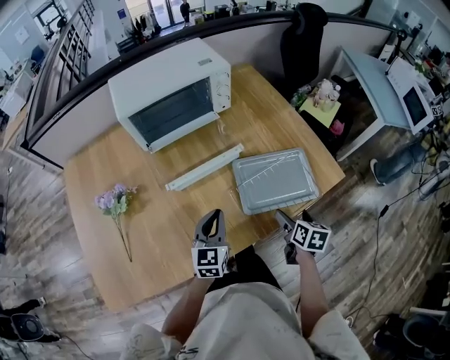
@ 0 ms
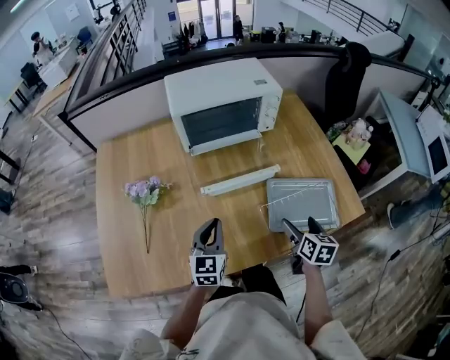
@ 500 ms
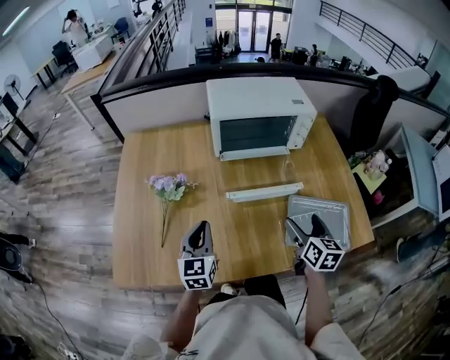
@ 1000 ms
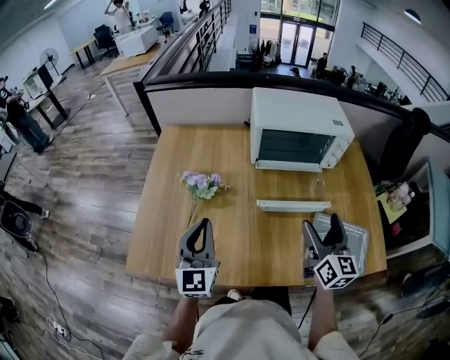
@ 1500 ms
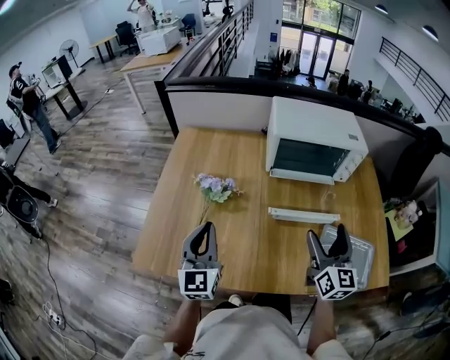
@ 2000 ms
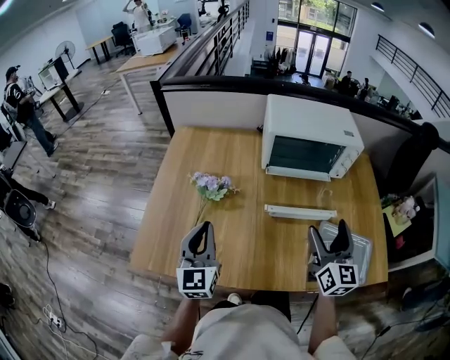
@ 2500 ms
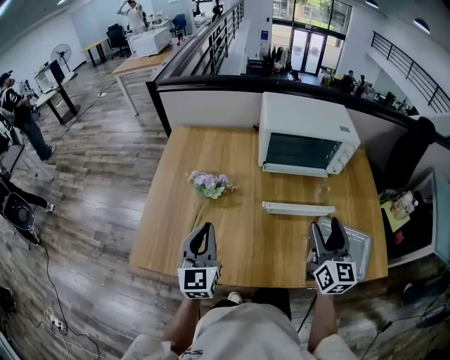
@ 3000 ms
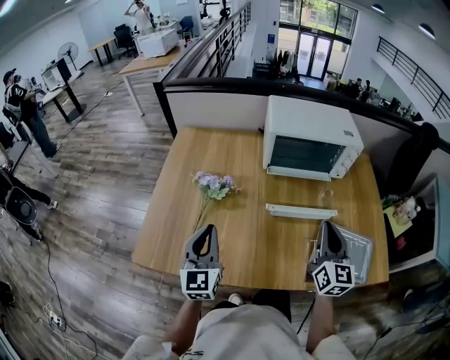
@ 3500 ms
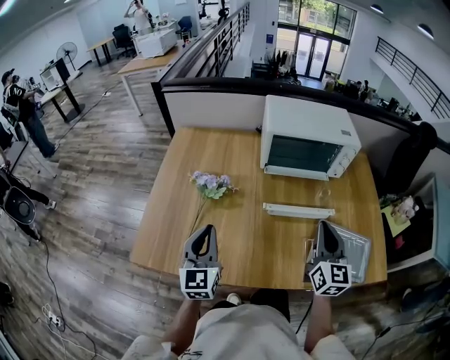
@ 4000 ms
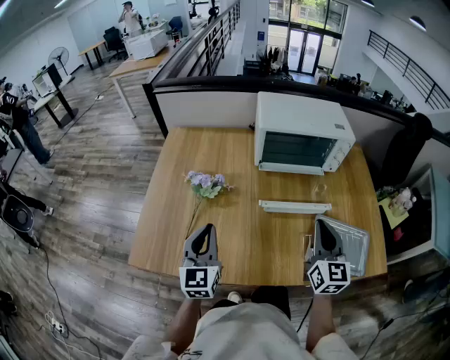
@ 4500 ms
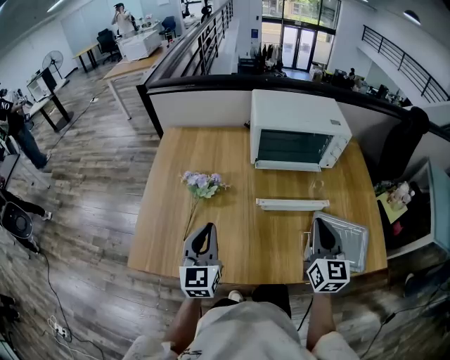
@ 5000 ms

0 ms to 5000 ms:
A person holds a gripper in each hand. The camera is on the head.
0 ms to 2500 ms: The left gripper ends up some 35 cm from where it was, and rotates some 40 degrees. Meanwhile the right gripper changes place by about 35 cm, and angles its fingers upward, by some 40 degrees.
2500 ms to 5000 ms: The right gripper closes its fingers.

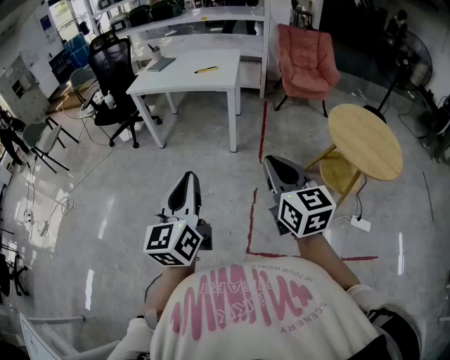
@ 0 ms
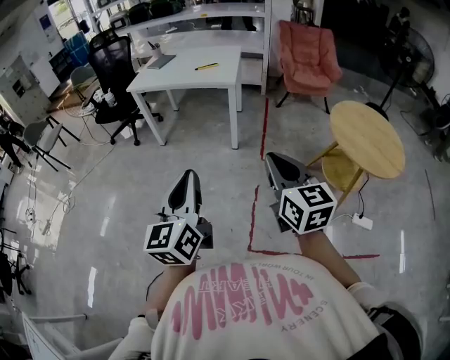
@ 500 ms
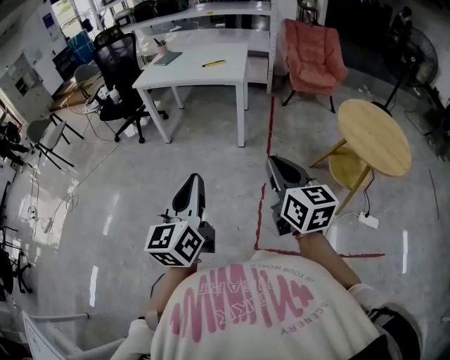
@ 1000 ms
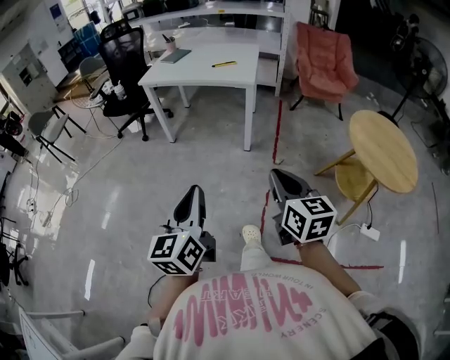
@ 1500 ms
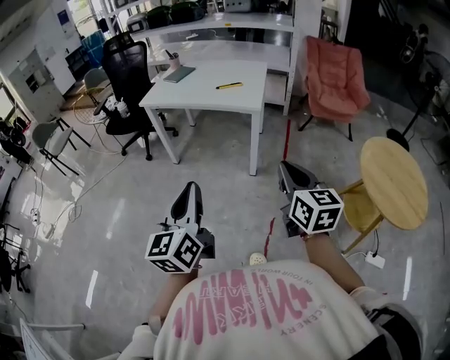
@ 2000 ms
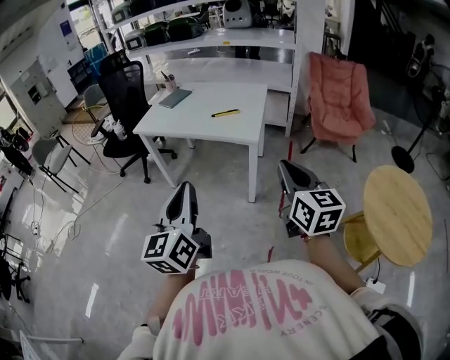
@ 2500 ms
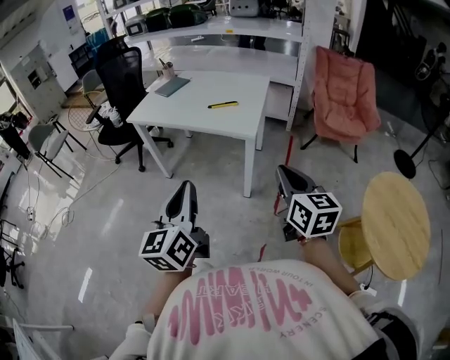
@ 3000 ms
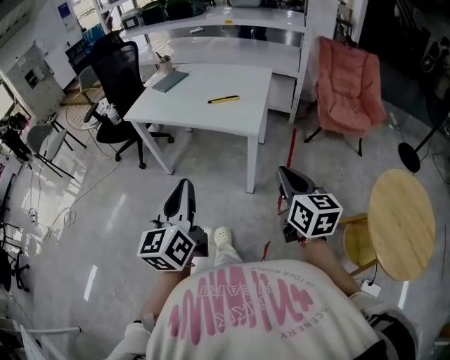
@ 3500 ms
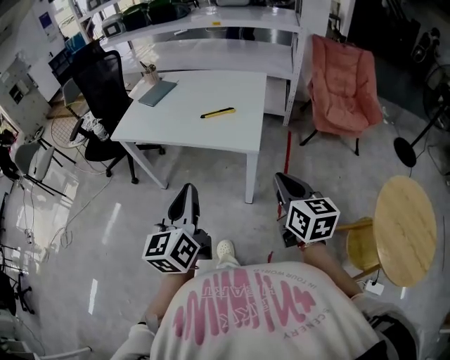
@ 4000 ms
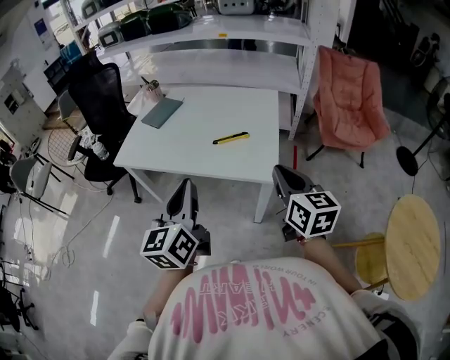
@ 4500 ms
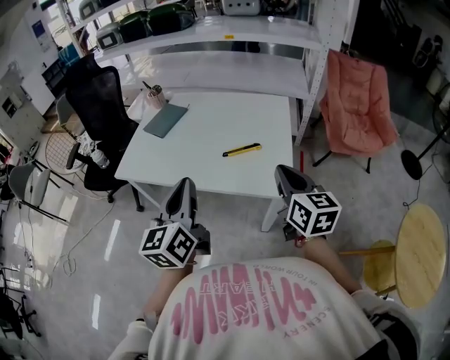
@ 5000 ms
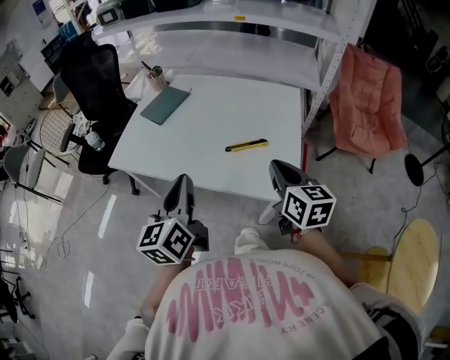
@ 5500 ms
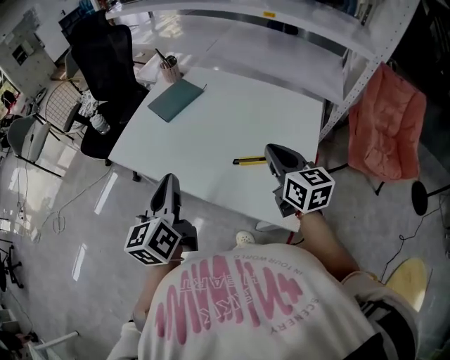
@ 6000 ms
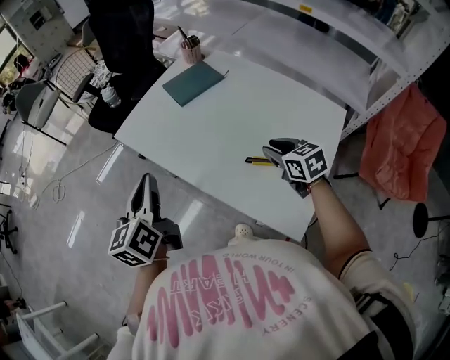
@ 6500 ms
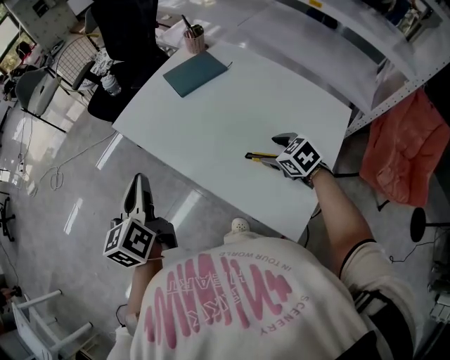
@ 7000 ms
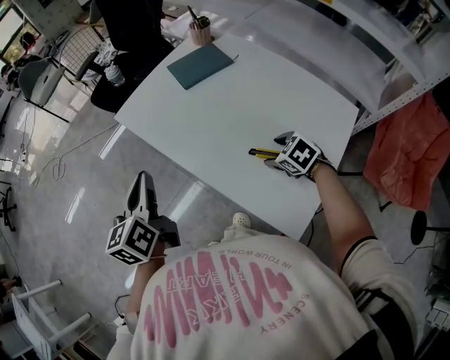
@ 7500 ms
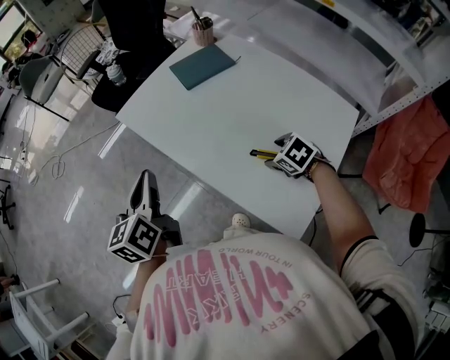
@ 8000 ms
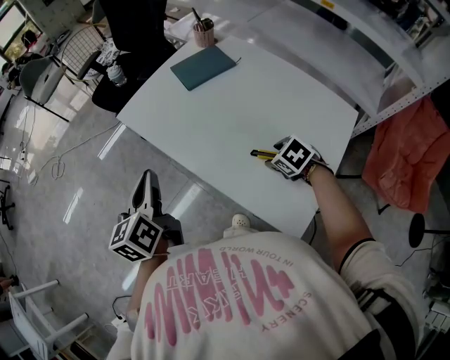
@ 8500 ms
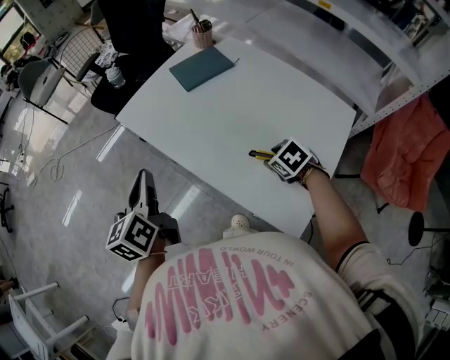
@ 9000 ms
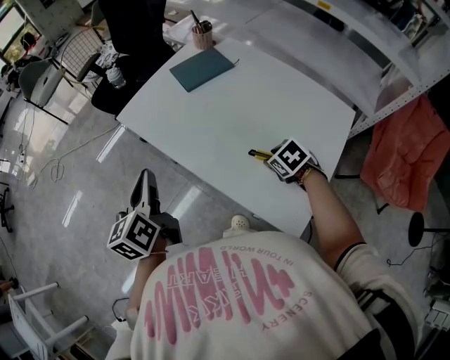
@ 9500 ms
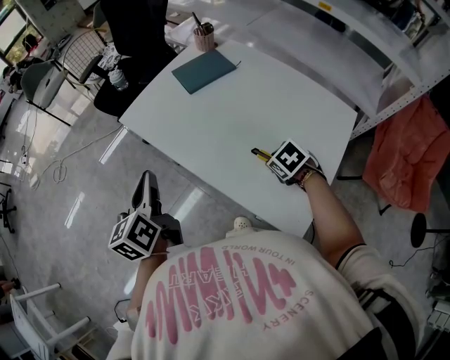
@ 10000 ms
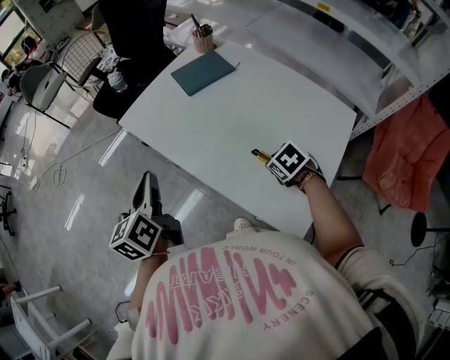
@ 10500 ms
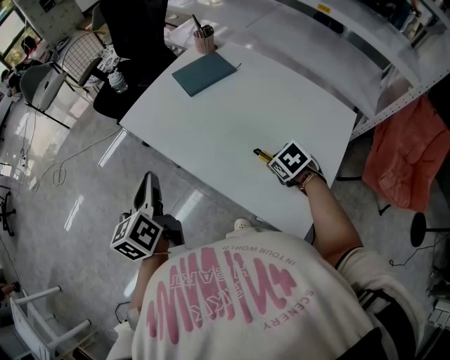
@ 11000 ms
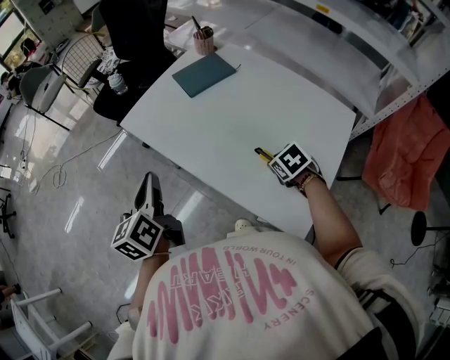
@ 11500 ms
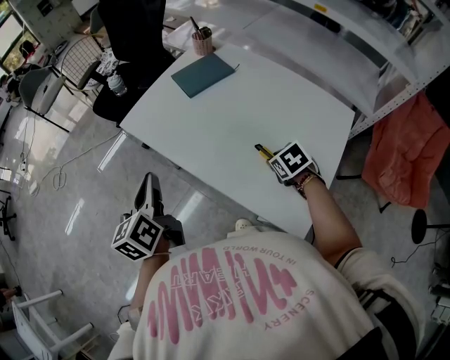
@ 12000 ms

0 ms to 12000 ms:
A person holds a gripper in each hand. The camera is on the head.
0 ms to 2000 ms: Both grippers move forward, about 25 cm.
2000 ms to 4000 ms: The pair of grippers is taken forward, approximately 40 cm.
4000 ms to 6000 ms: The two grippers travel together, forward, approximately 50 cm.
6000 ms to 8000 ms: The right gripper travels downward by about 20 cm, angles its fingers downward, by approximately 50 degrees, and opens, while the left gripper changes place by approximately 10 cm, and rotates about 20 degrees.
8000 ms to 10000 ms: The right gripper closes its fingers.
10000 ms to 12000 ms: The grippers make only small movements.

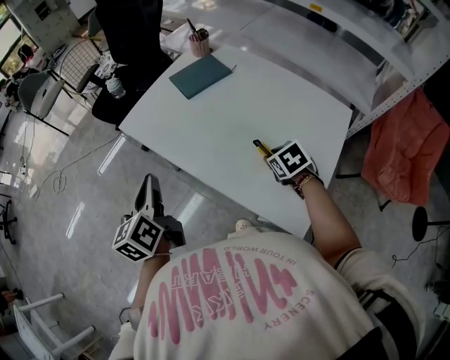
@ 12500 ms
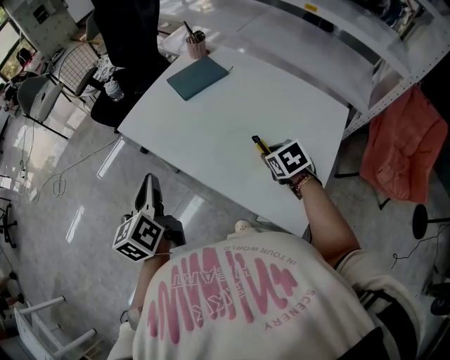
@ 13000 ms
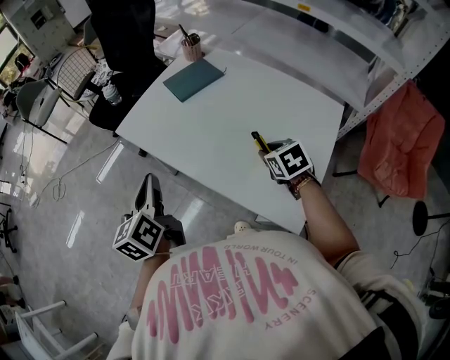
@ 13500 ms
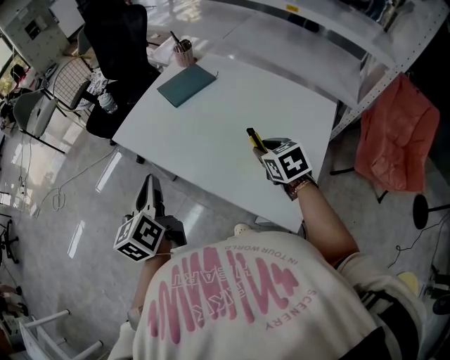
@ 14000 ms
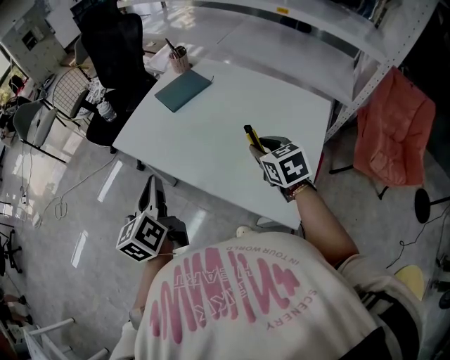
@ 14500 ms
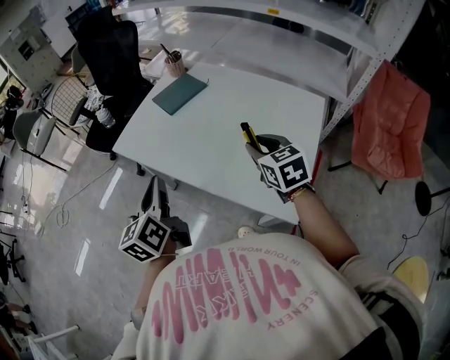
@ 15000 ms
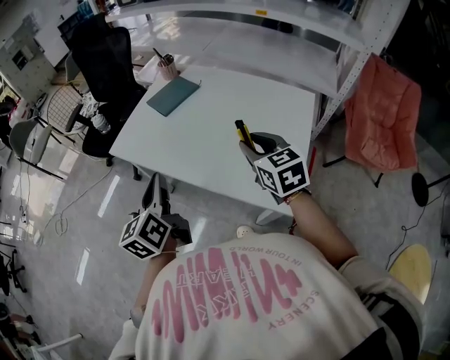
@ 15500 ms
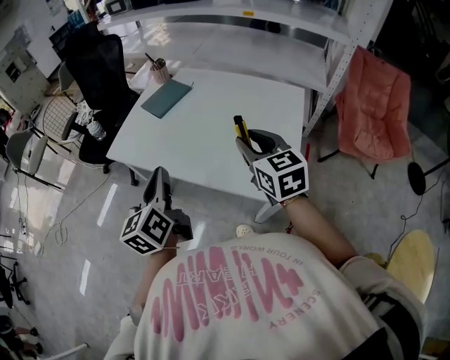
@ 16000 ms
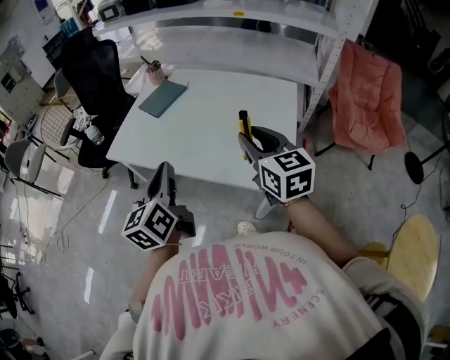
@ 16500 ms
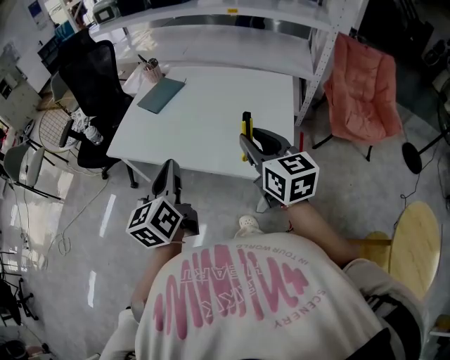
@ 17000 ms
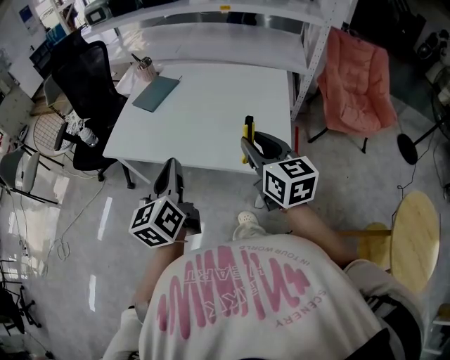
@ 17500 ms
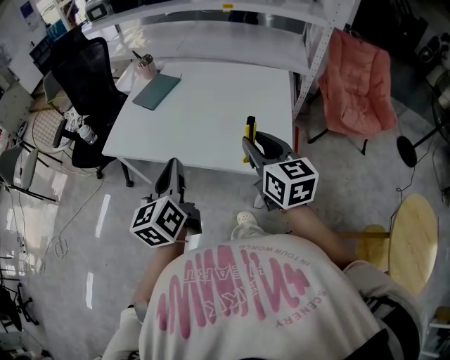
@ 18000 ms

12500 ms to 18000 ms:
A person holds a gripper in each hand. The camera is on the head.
12500 ms to 14500 ms: The right gripper goes roughly 10 cm upward, and rotates roughly 30 degrees. The left gripper ends up roughly 5 cm from where it was.
14500 ms to 16000 ms: The left gripper shifts roughly 5 cm backward. The right gripper shifts approximately 15 cm backward and upward, and swivels approximately 20 degrees.
16000 ms to 18000 ms: The right gripper heads backward, covering roughly 10 cm, while the left gripper heads backward, covering roughly 5 cm.

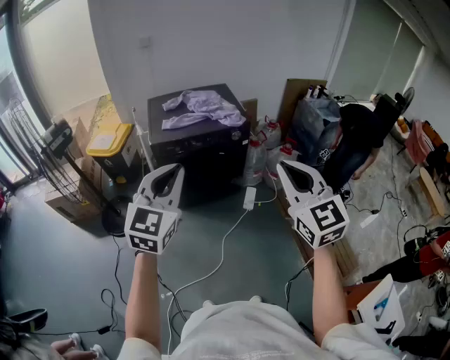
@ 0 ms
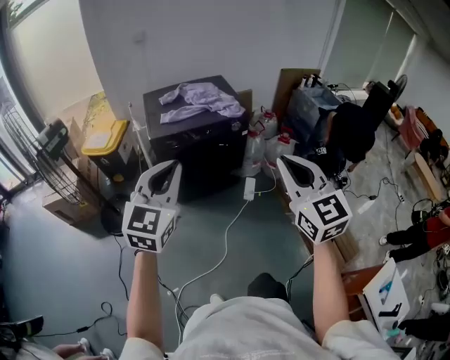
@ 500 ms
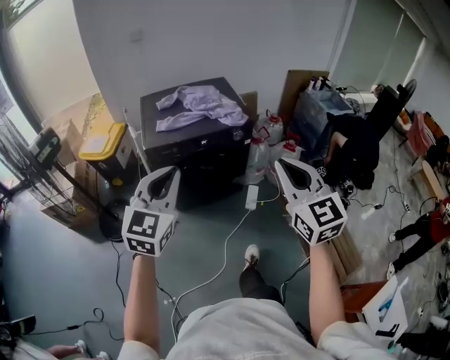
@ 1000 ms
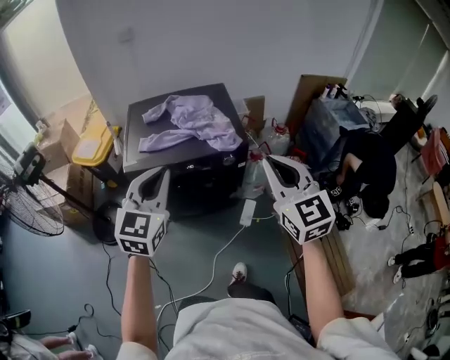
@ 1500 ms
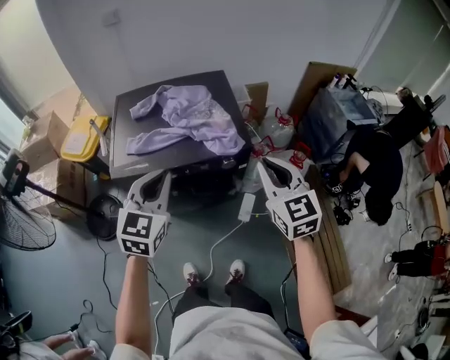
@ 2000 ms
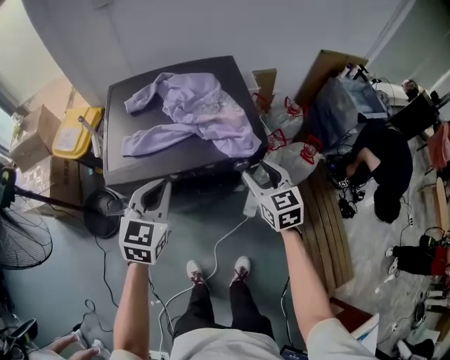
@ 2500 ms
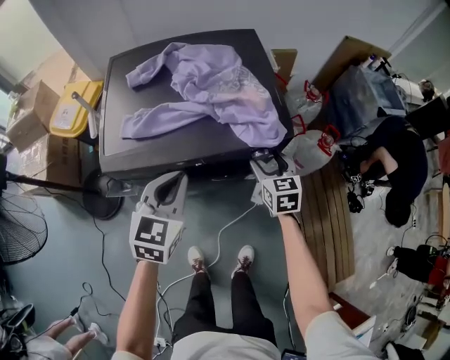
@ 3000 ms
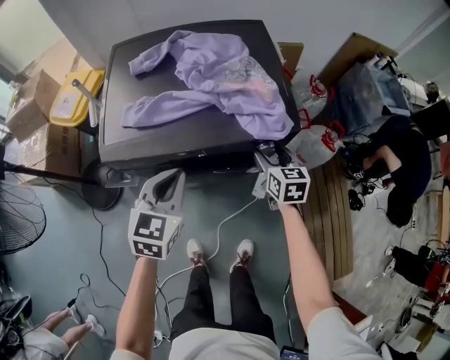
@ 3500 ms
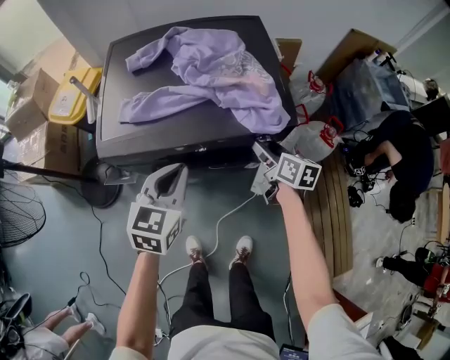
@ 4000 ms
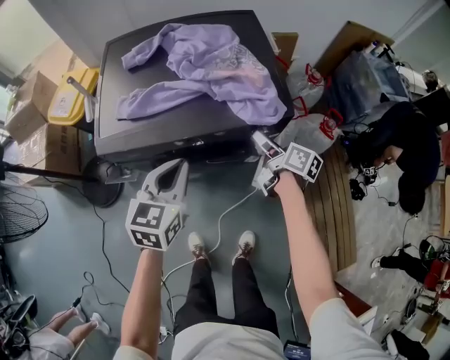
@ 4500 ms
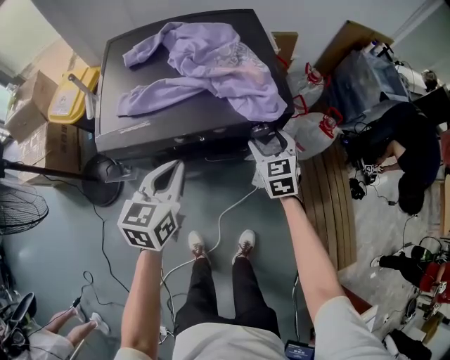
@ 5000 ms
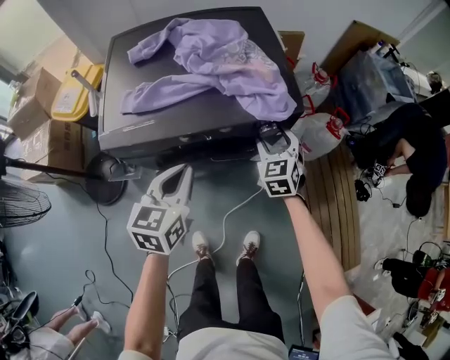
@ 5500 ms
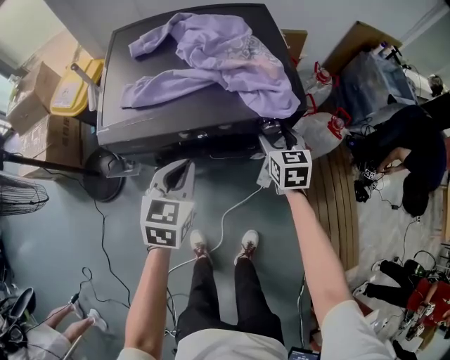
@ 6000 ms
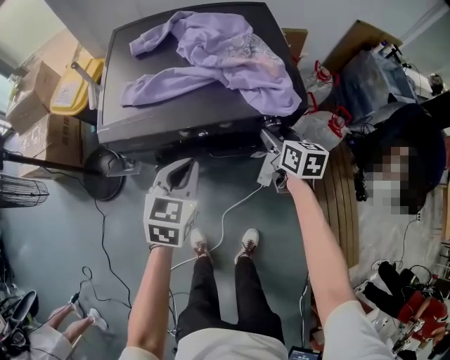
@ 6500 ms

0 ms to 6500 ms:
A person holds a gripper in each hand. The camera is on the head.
0 ms to 2000 ms: The grippers both shift forward by roughly 40 cm.
2000 ms to 4500 ms: The left gripper goes some 20 cm downward; the right gripper shifts roughly 30 cm downward and forward, twists some 70 degrees clockwise, seen from behind, and opens its fingers.
4500 ms to 6500 ms: The right gripper turns by about 40 degrees; the left gripper shifts by approximately 5 cm.
